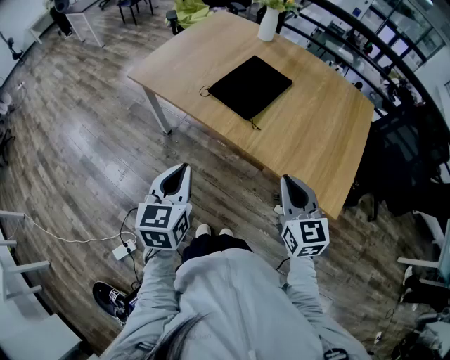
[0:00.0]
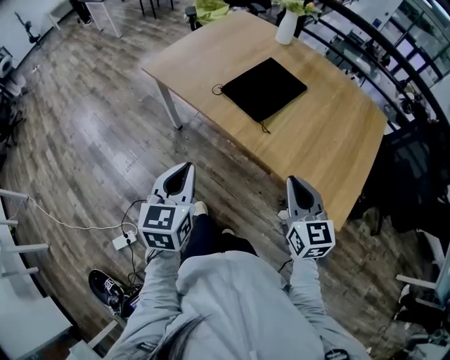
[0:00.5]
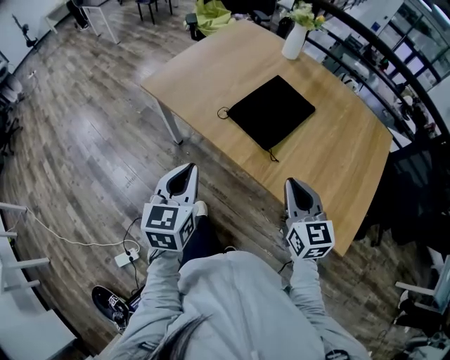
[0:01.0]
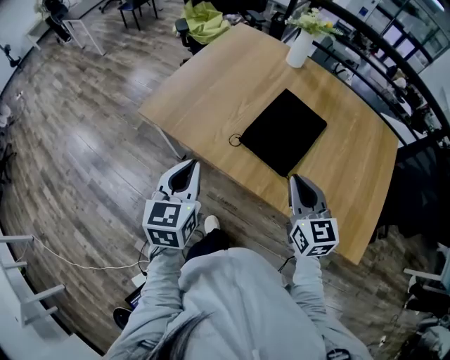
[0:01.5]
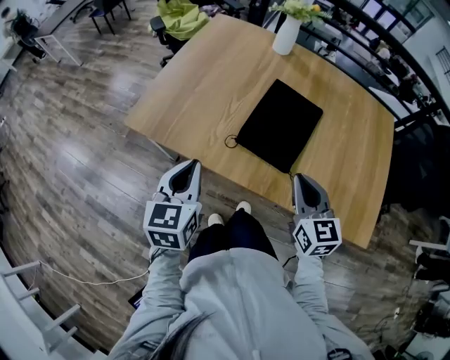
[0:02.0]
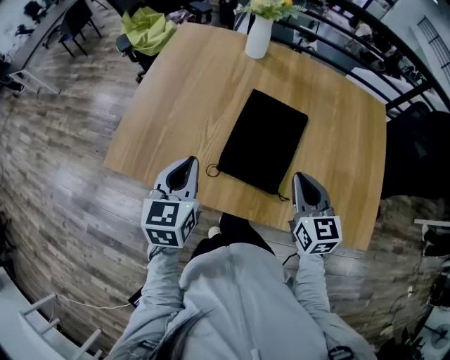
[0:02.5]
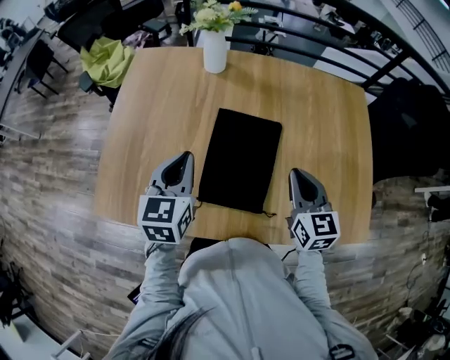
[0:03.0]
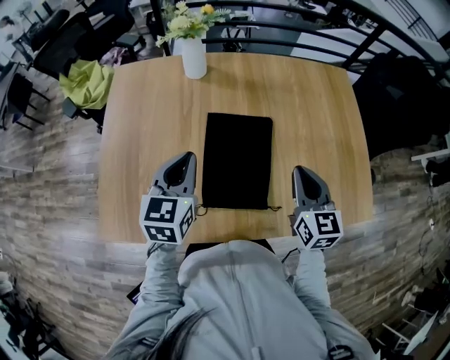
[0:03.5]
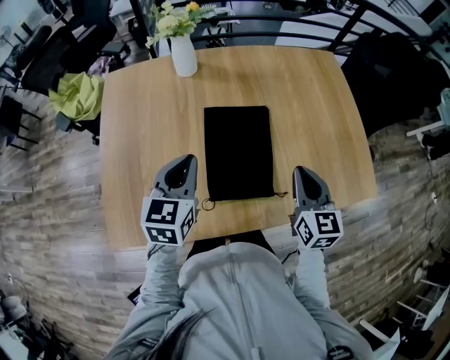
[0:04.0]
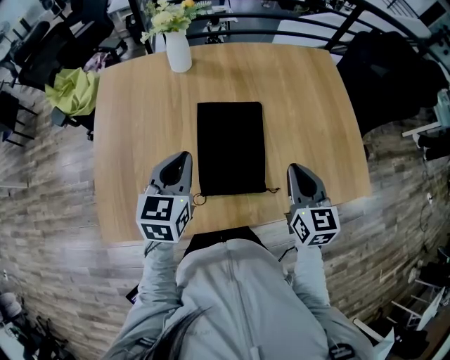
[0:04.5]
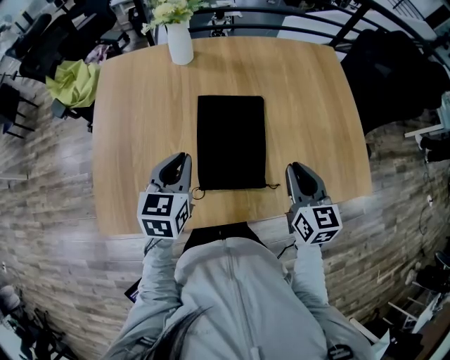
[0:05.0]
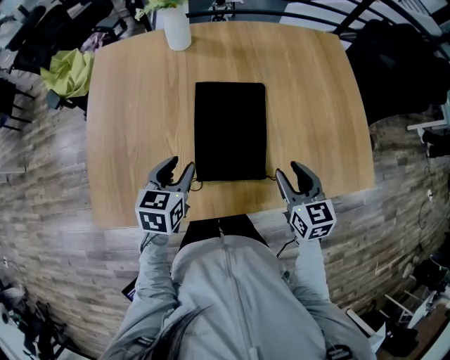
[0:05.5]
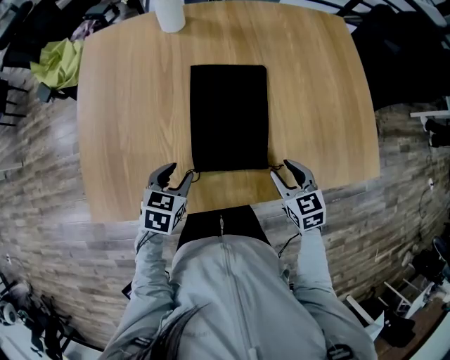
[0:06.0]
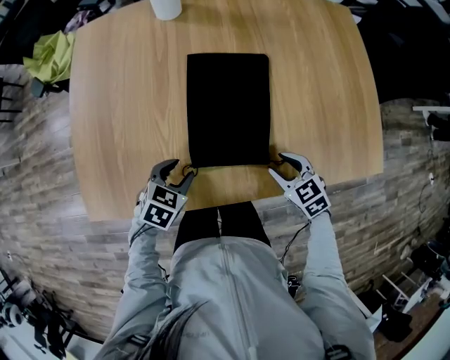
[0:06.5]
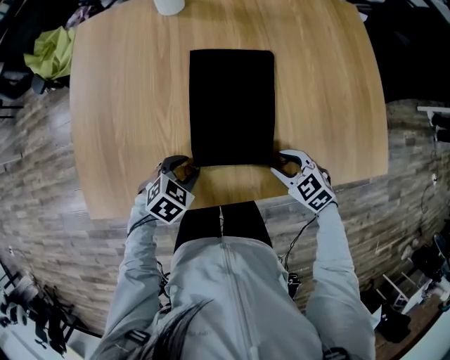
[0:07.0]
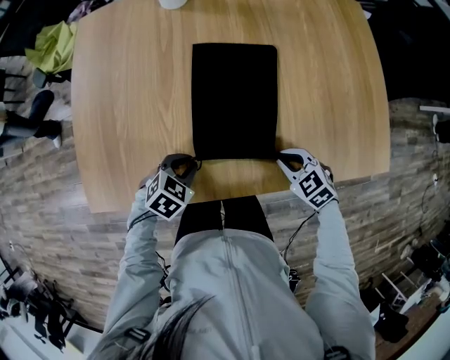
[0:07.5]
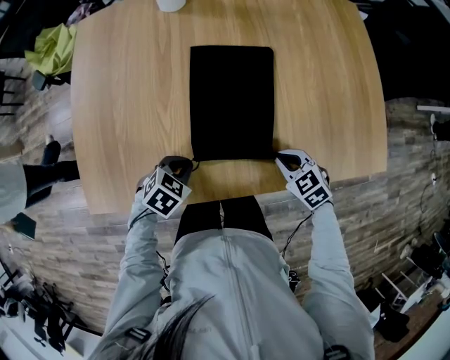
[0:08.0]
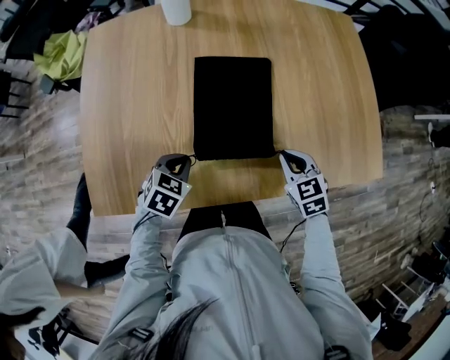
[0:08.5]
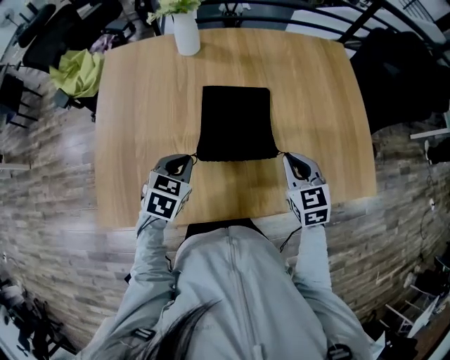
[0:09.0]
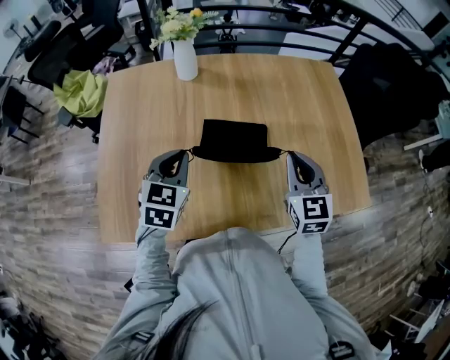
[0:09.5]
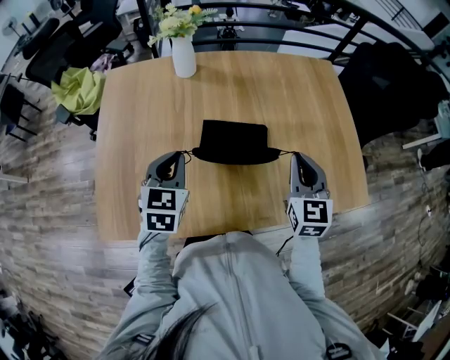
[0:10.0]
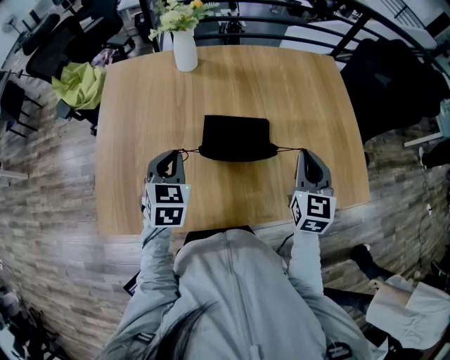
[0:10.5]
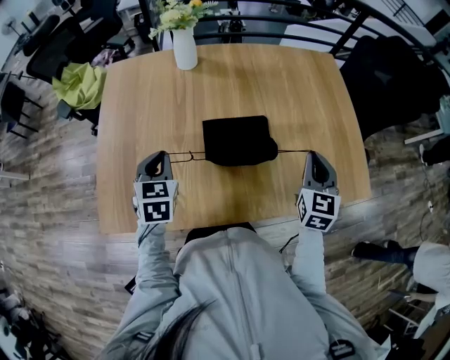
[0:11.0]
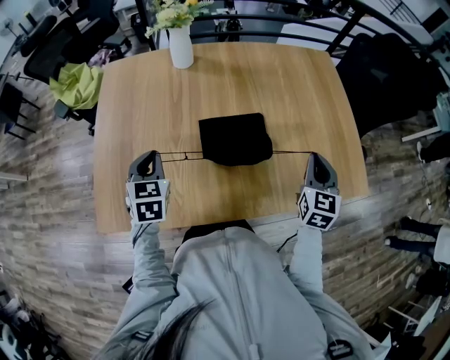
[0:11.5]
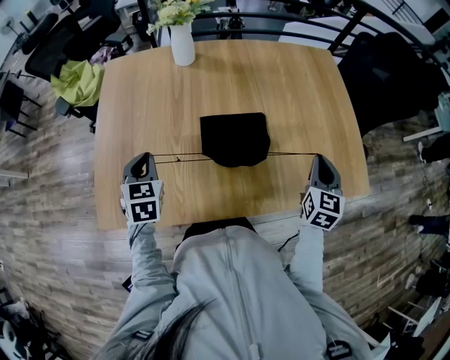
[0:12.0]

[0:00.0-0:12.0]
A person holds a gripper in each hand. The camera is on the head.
0:00.0 to 0:02.0: The left gripper heads forward, covering about 25 cm; the right gripper shifts approximately 25 cm forward and to the left.
0:02.0 to 0:04.0: The left gripper ends up about 25 cm from where it was, and changes its angle by approximately 40 degrees. Meanwhile the right gripper shifts by roughly 15 cm, and changes its angle by about 40 degrees.
0:04.0 to 0:06.0: The left gripper moves downward and backward, roughly 20 cm, rotates approximately 30 degrees, and opens up; the right gripper goes some 15 cm downward, changes its angle by roughly 30 degrees, and opens.
0:06.0 to 0:08.0: Both grippers move downward, approximately 5 cm. The right gripper rotates roughly 20 degrees, and closes up. The left gripper rotates approximately 30 degrees, and closes.
0:08.0 to 0:10.0: The grippers both shift upward and forward by some 25 cm. The right gripper tilts its fingers approximately 40 degrees upward; the left gripper points its fingers approximately 30 degrees further upward.
0:10.0 to 0:12.0: The left gripper is displaced to the left by approximately 10 cm, while the right gripper is displaced to the right by roughly 10 cm.

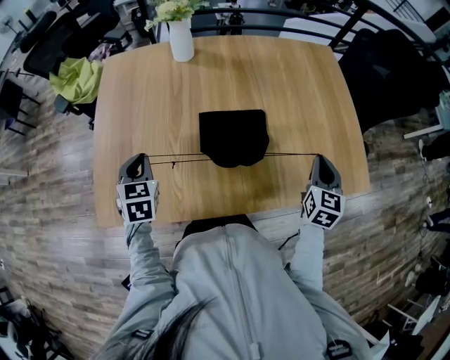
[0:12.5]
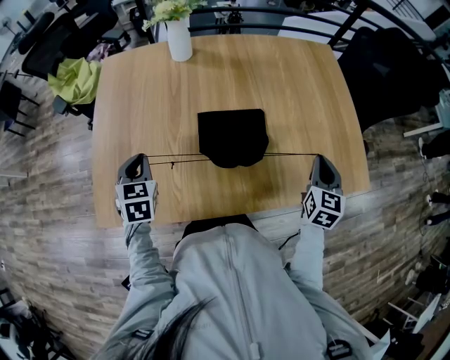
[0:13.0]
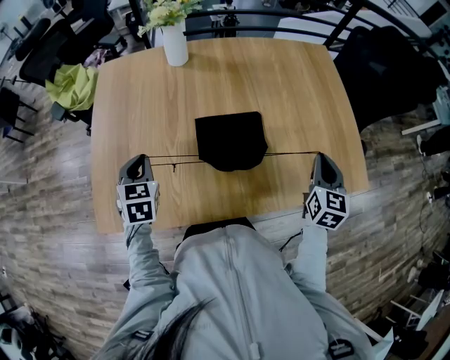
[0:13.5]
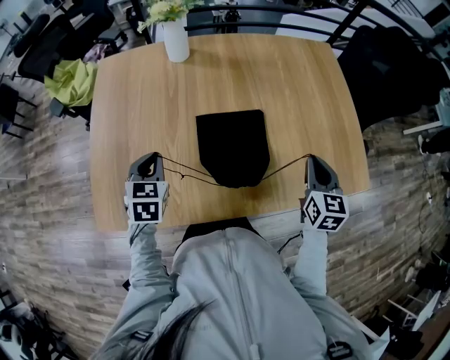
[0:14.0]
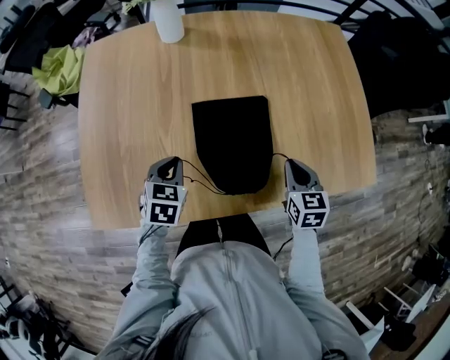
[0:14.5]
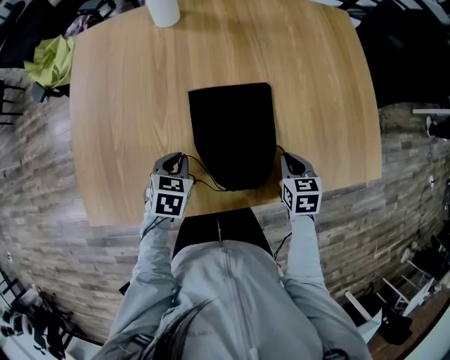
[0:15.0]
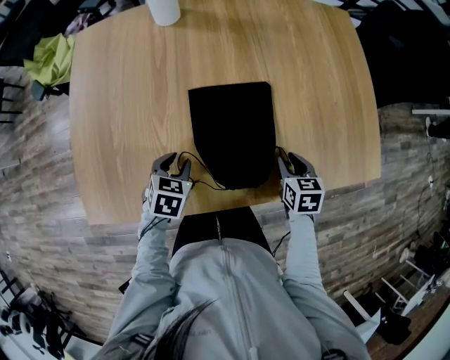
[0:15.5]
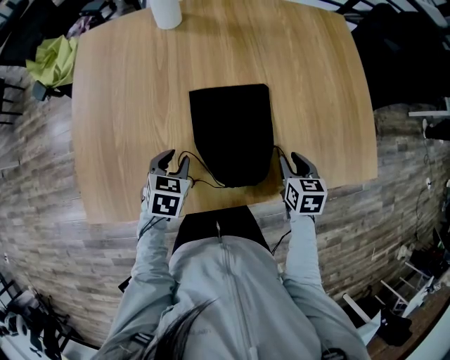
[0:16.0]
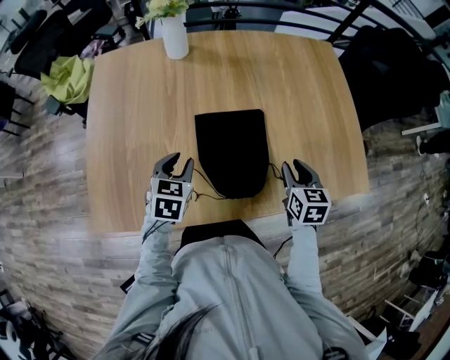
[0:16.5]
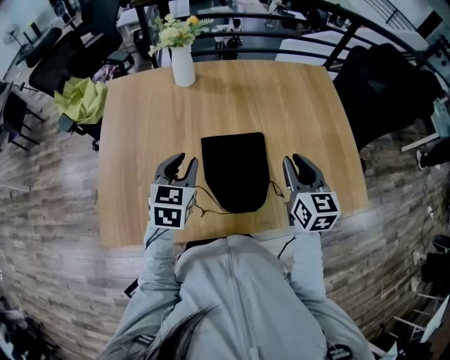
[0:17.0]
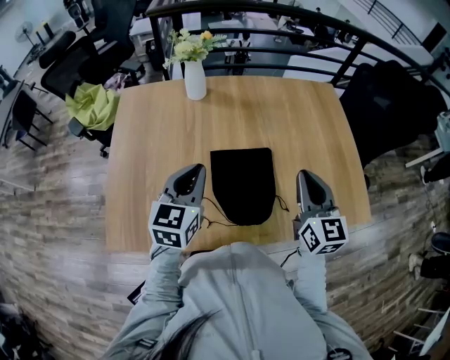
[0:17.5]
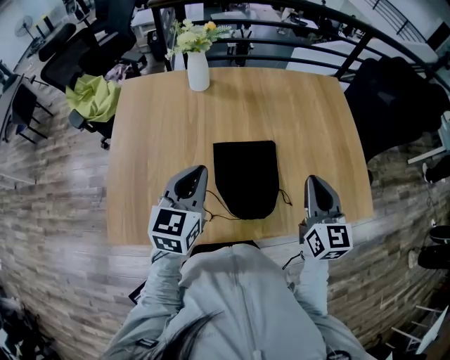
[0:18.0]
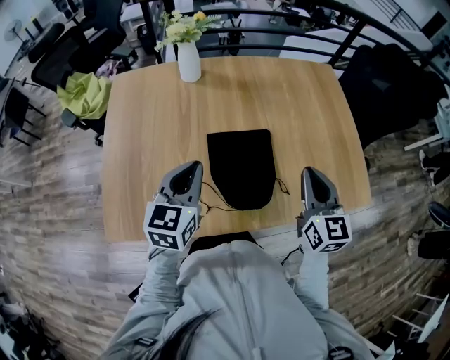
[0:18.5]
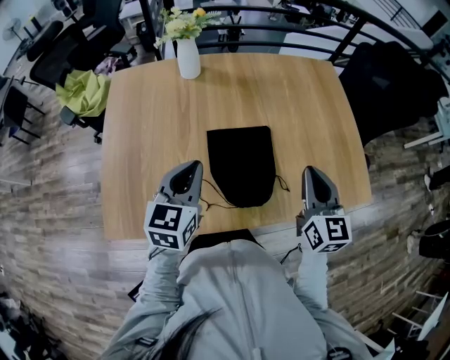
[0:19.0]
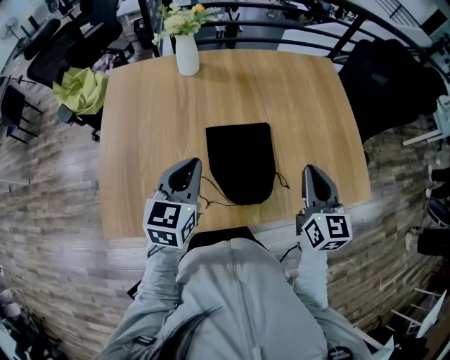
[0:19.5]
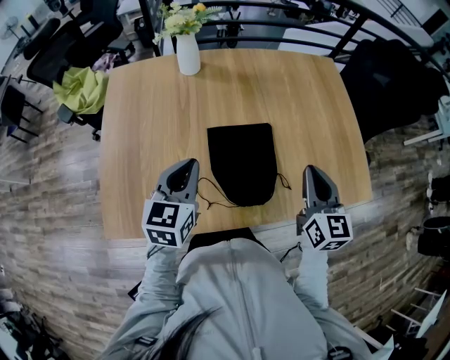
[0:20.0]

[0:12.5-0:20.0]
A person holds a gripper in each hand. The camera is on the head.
0:12.5 to 0:14.5: The left gripper heads to the right and downward, covering about 15 cm, and swivels roughly 20 degrees. The right gripper travels downward and to the left by about 10 cm, and swivels approximately 20 degrees.
0:14.5 to 0:16.5: The left gripper reaches about 5 cm downward, then returns, and opens. Meanwhile the right gripper reaches approximately 5 cm downward, then returns, and opens up.
0:16.5 to 0:18.0: Both grippers travel together upward, approximately 15 cm. The left gripper rotates some 30 degrees, and closes up. The right gripper swivels some 30 degrees, and closes up.
0:18.0 to 0:20.0: The grippers move only a little.

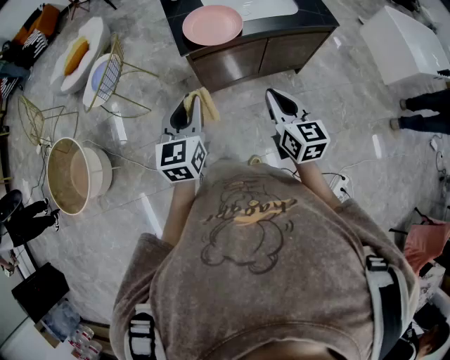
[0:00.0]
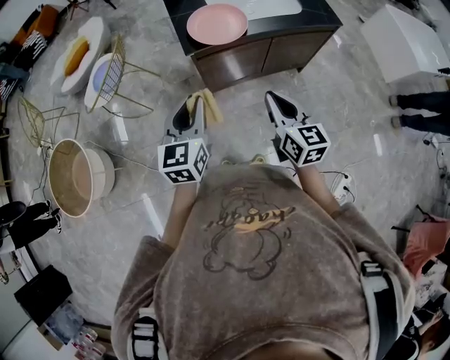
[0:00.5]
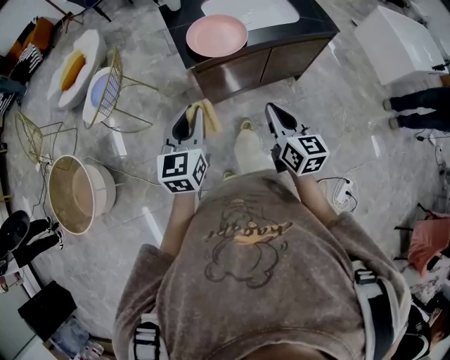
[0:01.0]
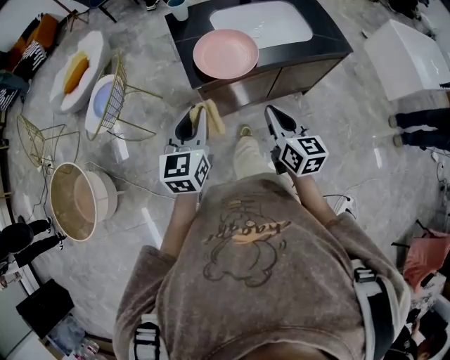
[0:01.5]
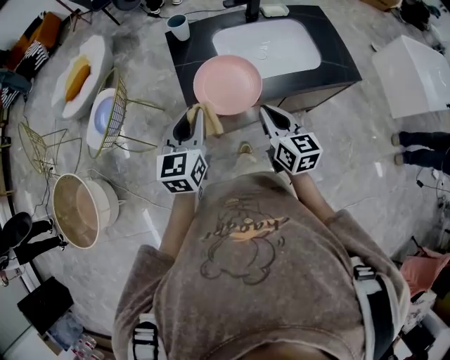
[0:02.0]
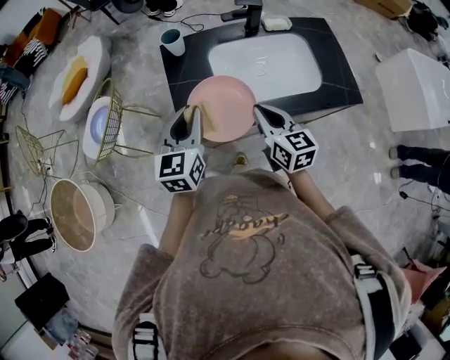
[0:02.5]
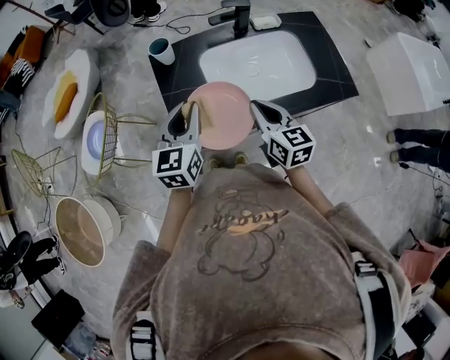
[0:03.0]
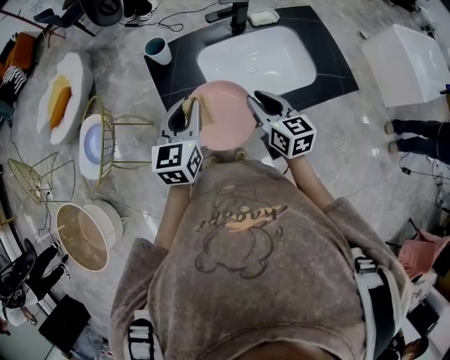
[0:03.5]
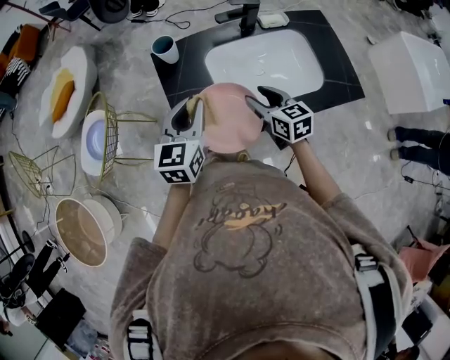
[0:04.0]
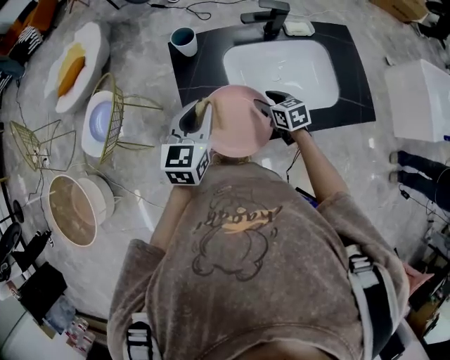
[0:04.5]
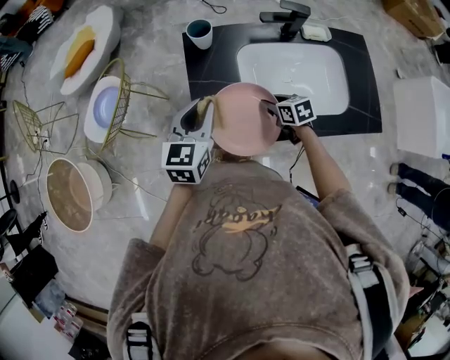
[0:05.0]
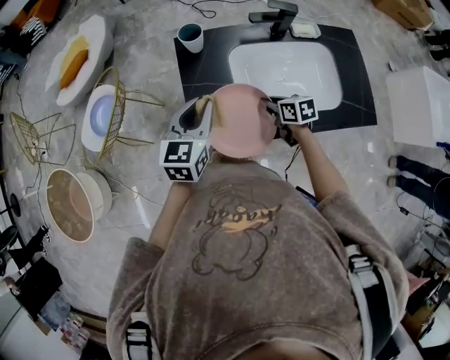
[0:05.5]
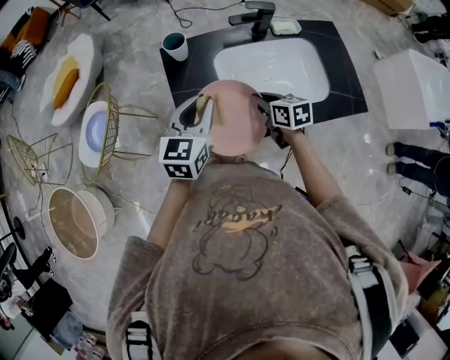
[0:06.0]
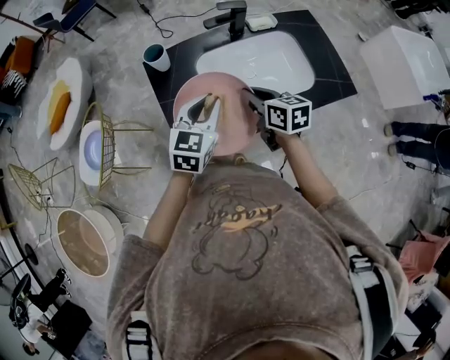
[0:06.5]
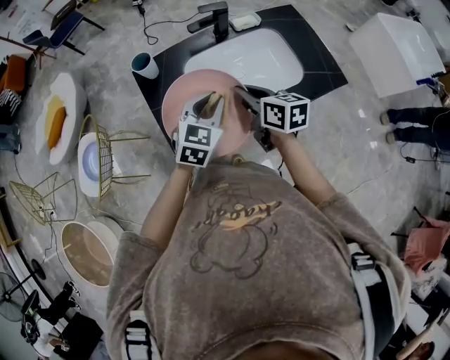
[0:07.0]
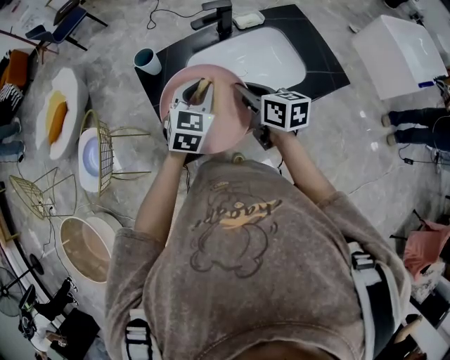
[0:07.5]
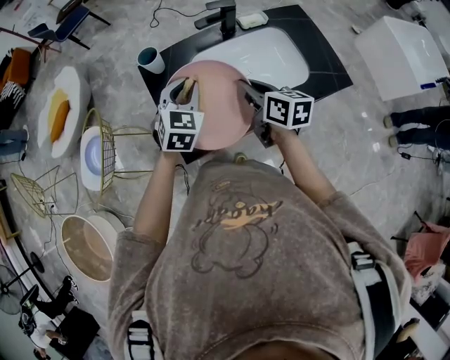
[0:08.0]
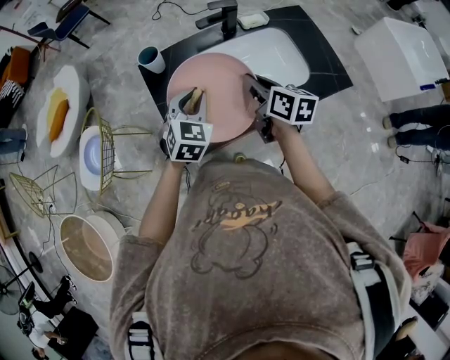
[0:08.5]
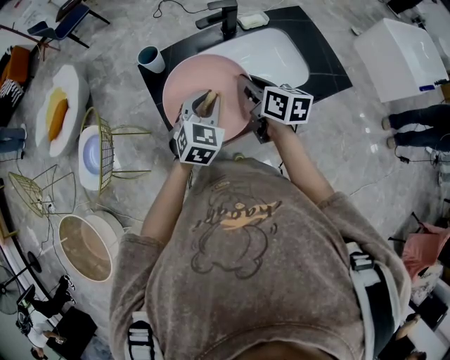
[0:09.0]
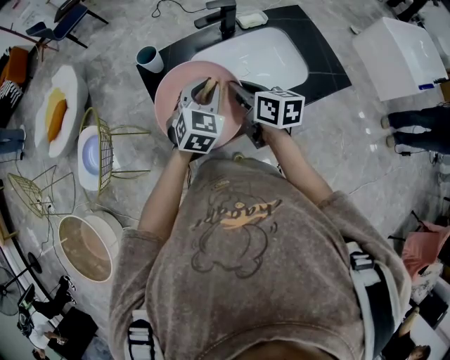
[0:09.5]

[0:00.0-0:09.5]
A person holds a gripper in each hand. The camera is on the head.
0:00.0 to 0:02.0: Both grippers move forward, roughly 30 cm.
0:02.0 to 0:04.0: The grippers both shift forward by approximately 20 cm. The right gripper opens up.
0:04.0 to 0:05.5: The right gripper goes approximately 10 cm downward, swivels about 30 degrees, and closes up.
0:05.5 to 0:07.5: The left gripper moves to the right, some 10 cm, and rotates approximately 30 degrees. The right gripper travels upward by approximately 15 cm, and rotates about 30 degrees.
0:07.5 to 0:09.5: The grippers make only small movements.
